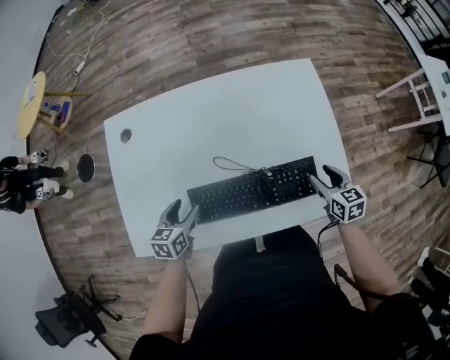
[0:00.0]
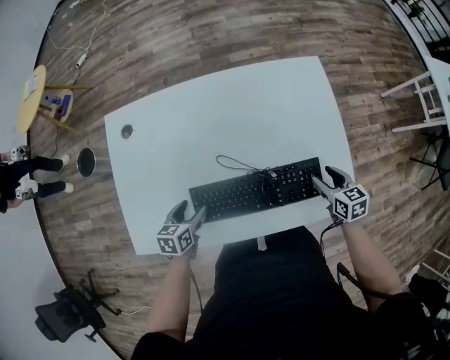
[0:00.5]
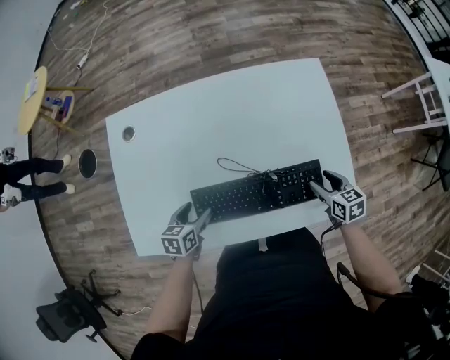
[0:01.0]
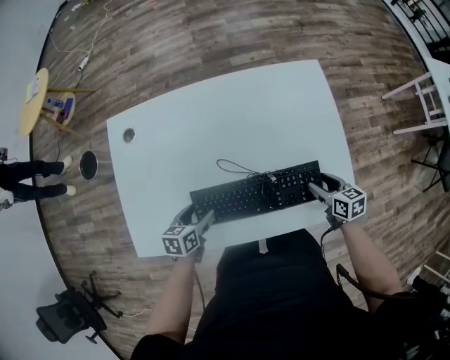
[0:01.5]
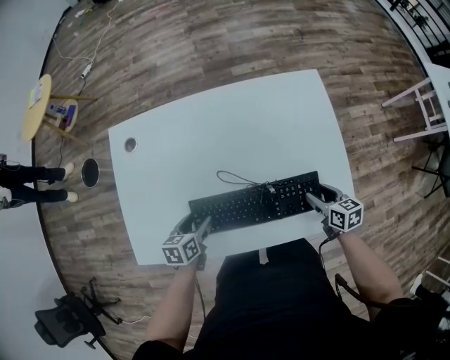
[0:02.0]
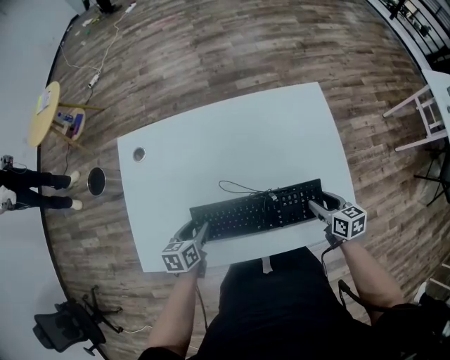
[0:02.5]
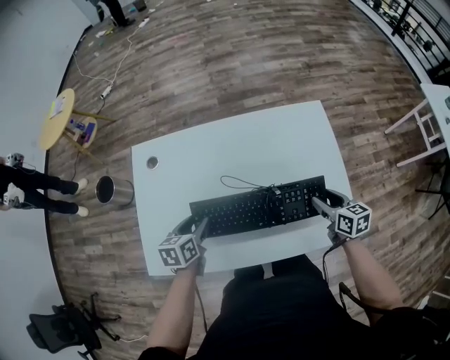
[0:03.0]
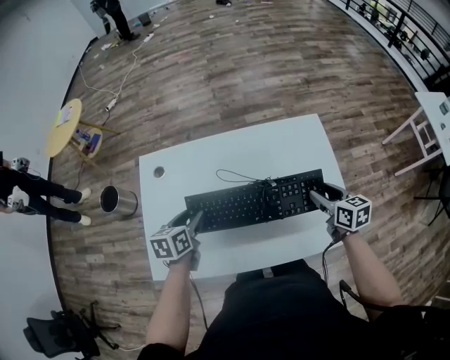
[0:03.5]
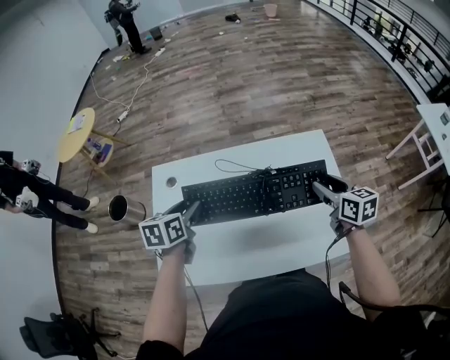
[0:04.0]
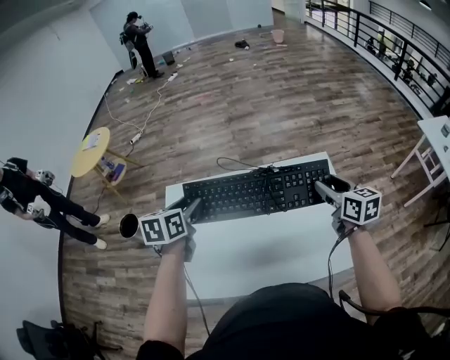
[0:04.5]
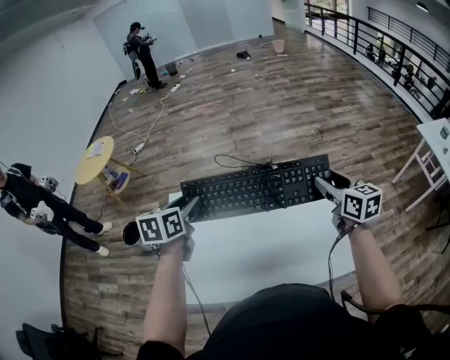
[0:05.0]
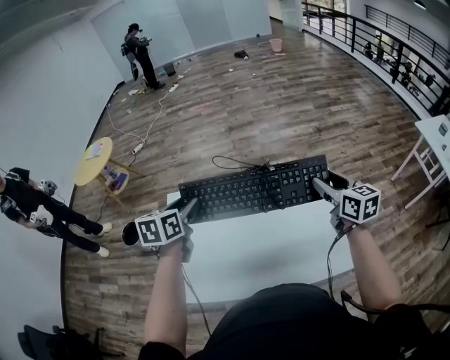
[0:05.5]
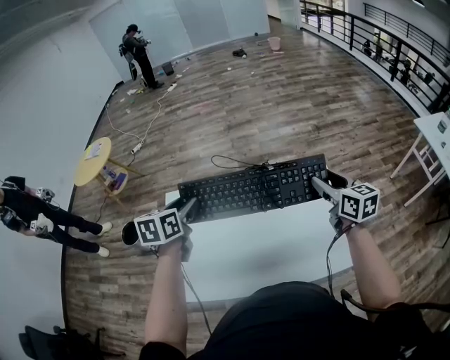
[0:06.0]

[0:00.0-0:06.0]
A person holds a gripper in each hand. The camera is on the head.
0:00.0 to 0:02.0: The grippers move only a little.
0:02.0 to 0:04.0: The grippers both shift upward and forward by approximately 25 cm.
0:04.0 to 0:06.0: The two grippers go about 10 cm upward.

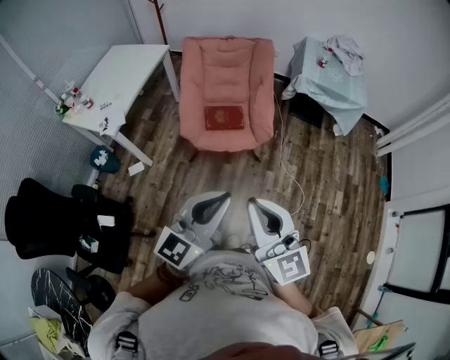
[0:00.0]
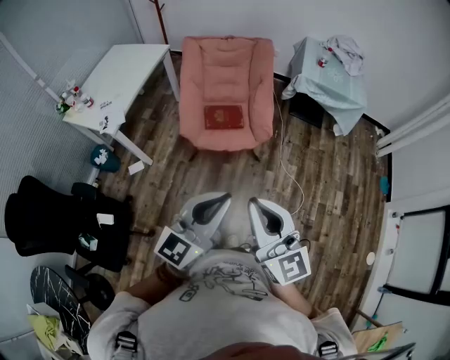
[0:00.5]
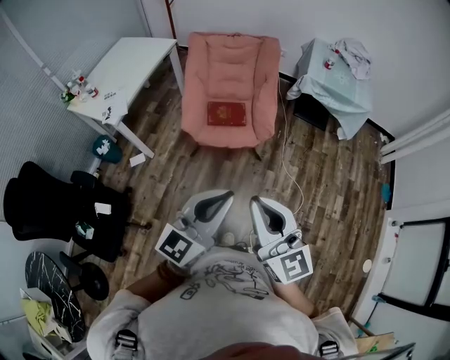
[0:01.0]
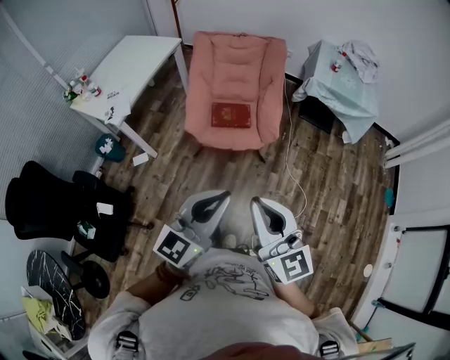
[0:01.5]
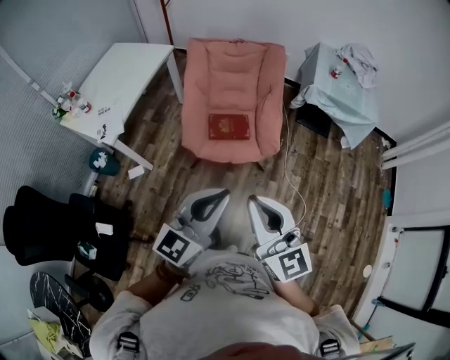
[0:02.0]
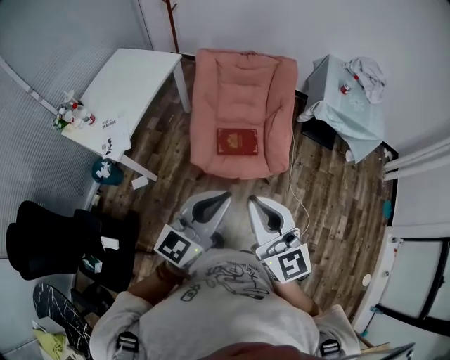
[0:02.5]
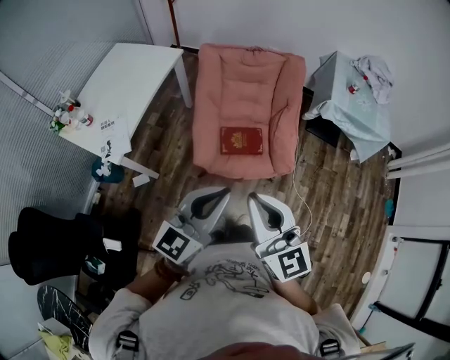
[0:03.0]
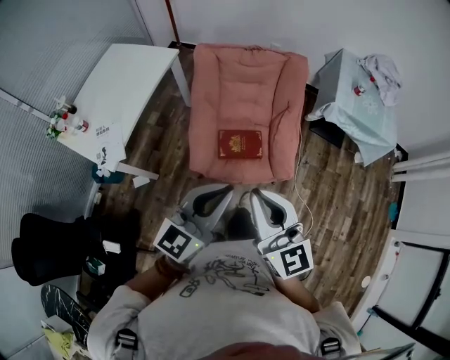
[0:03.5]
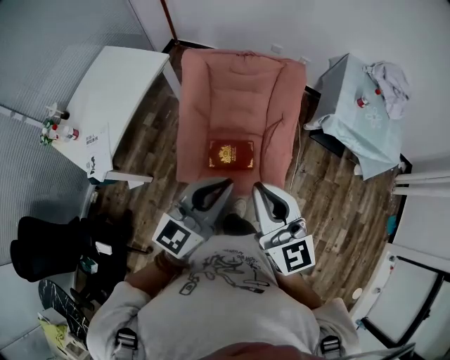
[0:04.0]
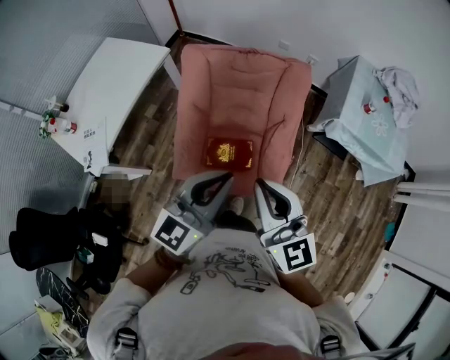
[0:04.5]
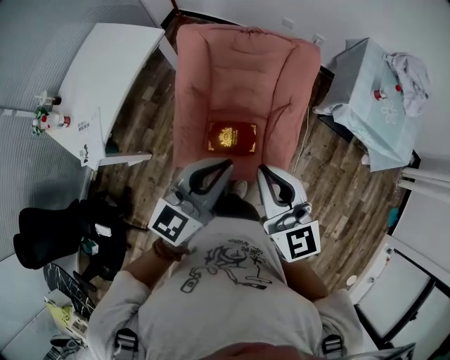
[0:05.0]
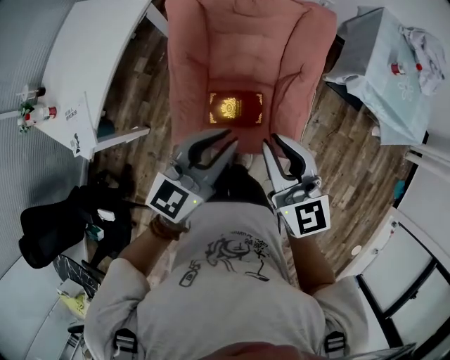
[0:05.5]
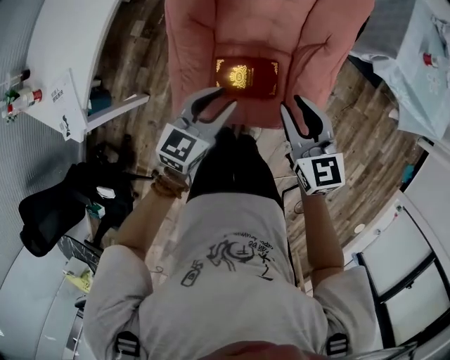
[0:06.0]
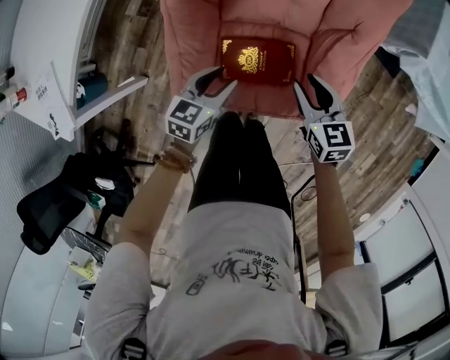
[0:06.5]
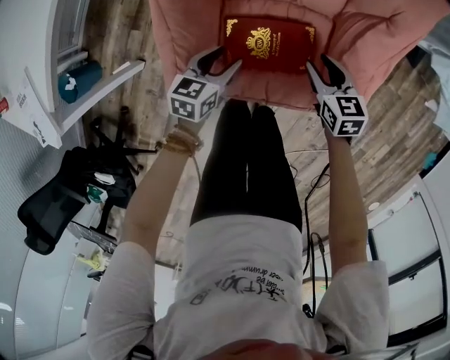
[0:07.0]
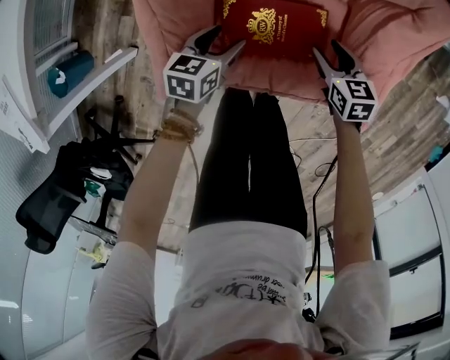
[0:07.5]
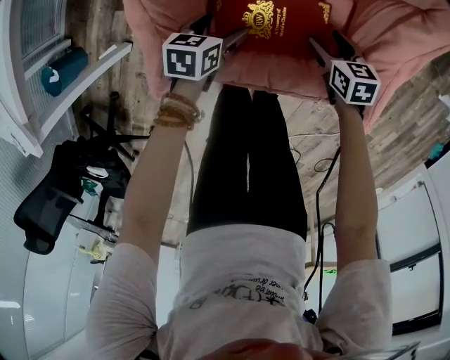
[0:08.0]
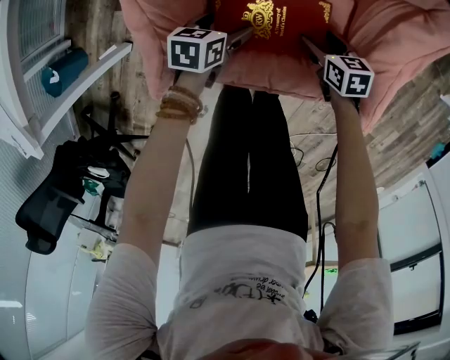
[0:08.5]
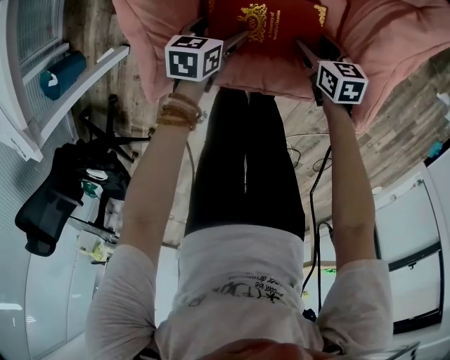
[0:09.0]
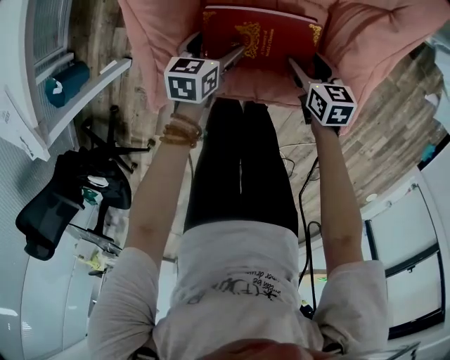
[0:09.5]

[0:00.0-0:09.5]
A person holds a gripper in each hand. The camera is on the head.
0:00.0 to 0:02.0: Both grippers travel together forward, roughly 15 cm.
0:02.0 to 0:04.0: Both grippers are carried forward, approximately 40 cm.
0:04.0 to 0:05.5: The grippers both shift forward and downward by roughly 20 cm.
0:05.5 to 0:07.5: Both grippers move downward, some 60 cm. The right gripper tips its fingers downward by approximately 40 degrees, and opens up. Meanwhile the left gripper points its fingers about 30 degrees further downward, and opens up.
0:07.5 to 0:09.5: The left gripper travels downward and back again, roughly 5 cm each way, and opens its fingers; the right gripper goes downward and returns, roughly 10 cm each way.

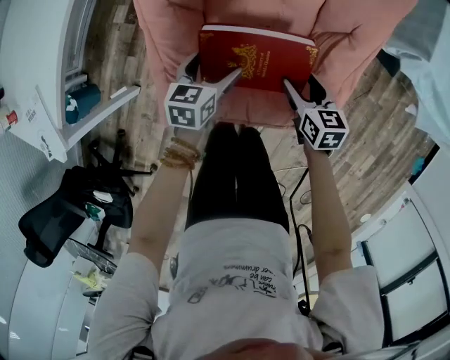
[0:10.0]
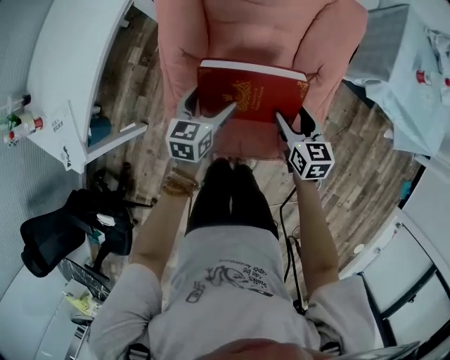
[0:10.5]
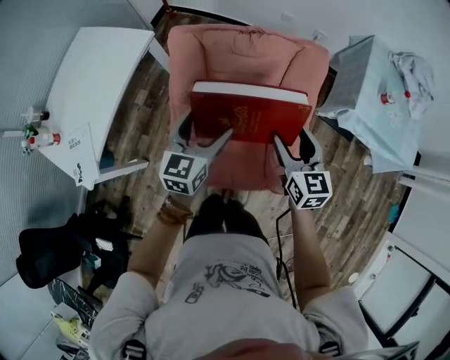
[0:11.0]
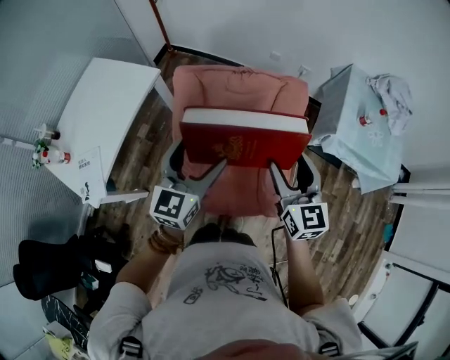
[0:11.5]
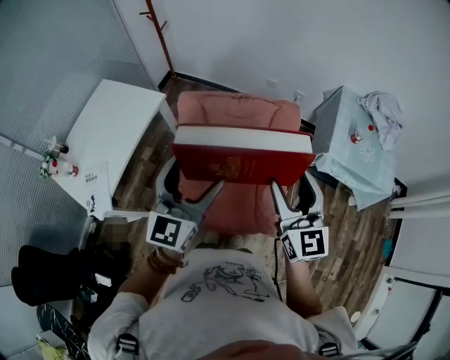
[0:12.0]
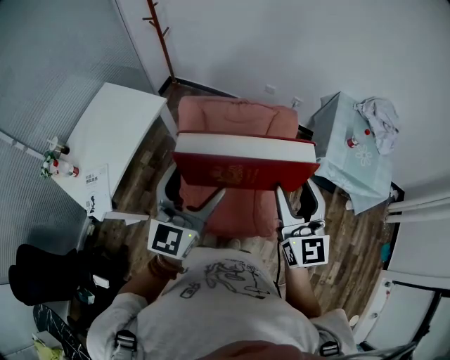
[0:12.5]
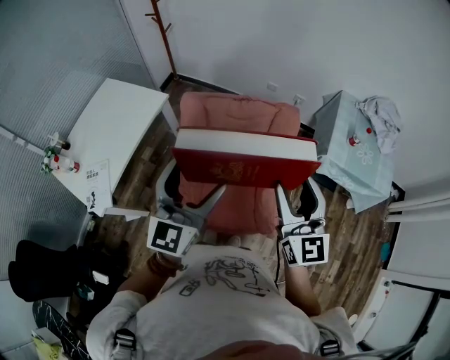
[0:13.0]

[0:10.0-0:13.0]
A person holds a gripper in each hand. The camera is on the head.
0:10.0 to 0:11.5: Both grippers move upward, approximately 60 cm. The right gripper tips its fingers upward by about 30 degrees; the left gripper tilts its fingers roughly 30 degrees upward.
0:11.5 to 0:13.0: Both grippers travel together upward and backward, roughly 15 cm.

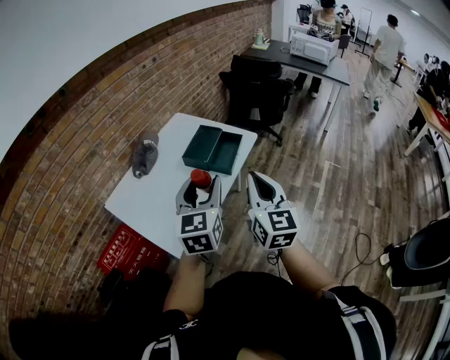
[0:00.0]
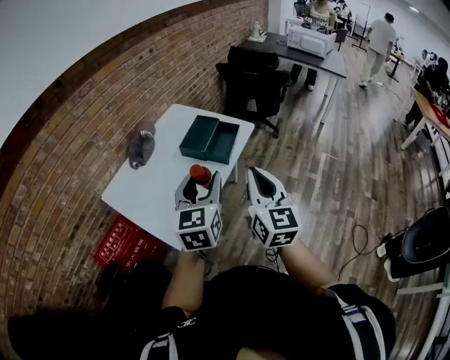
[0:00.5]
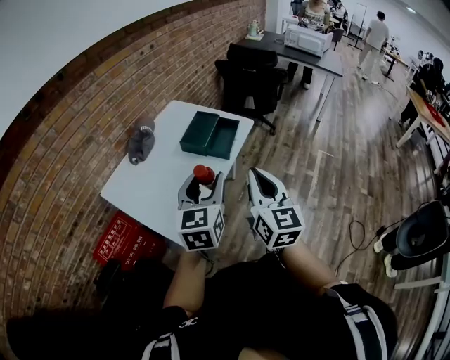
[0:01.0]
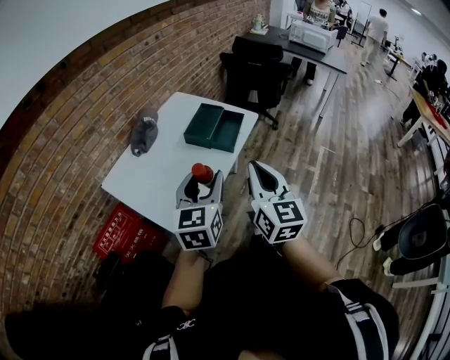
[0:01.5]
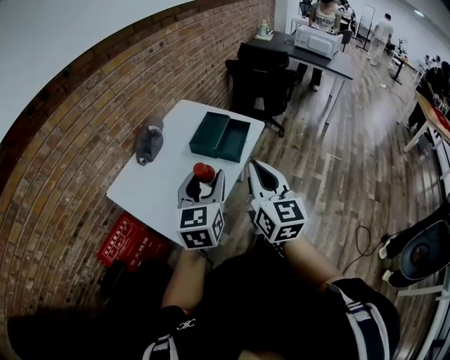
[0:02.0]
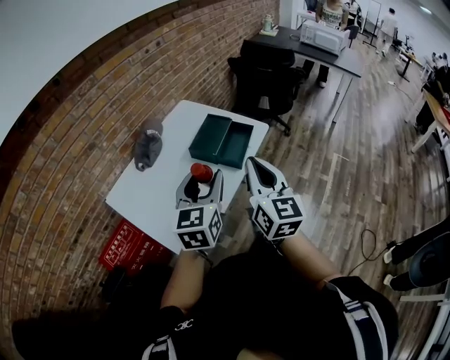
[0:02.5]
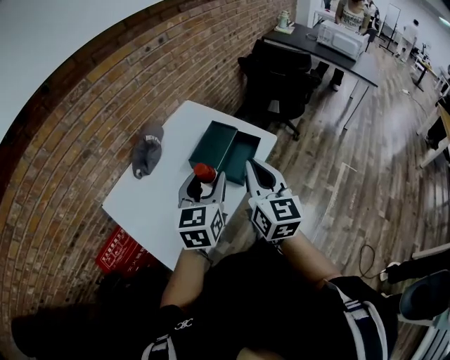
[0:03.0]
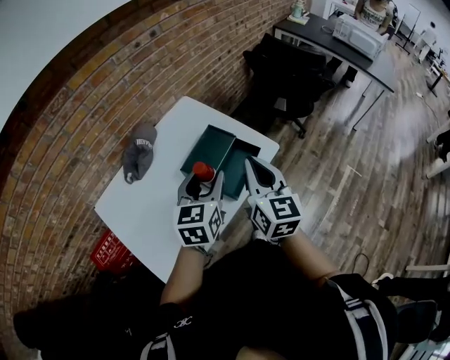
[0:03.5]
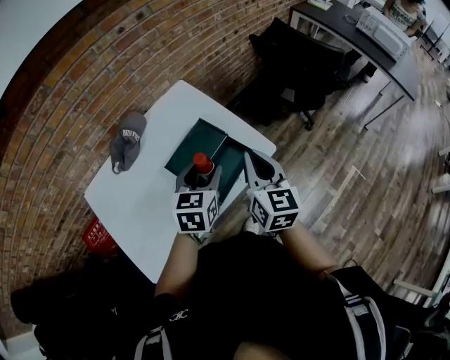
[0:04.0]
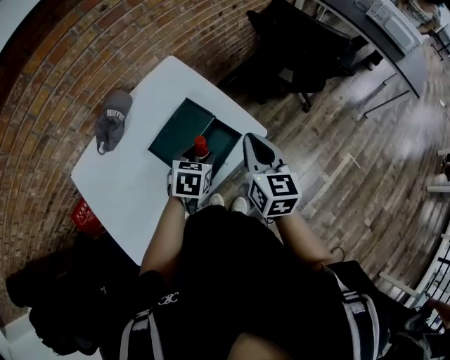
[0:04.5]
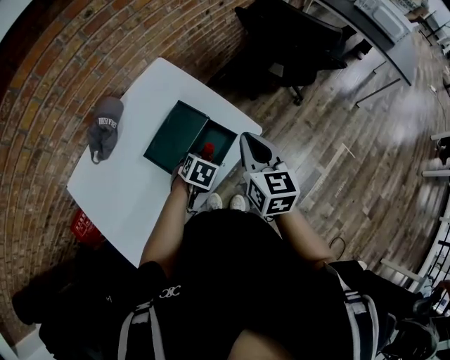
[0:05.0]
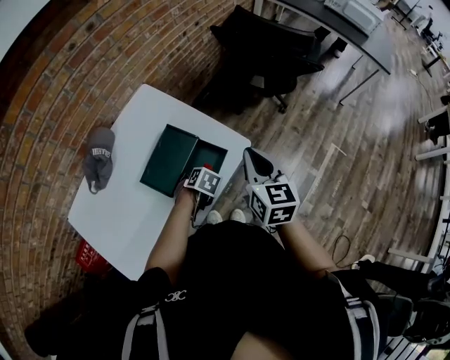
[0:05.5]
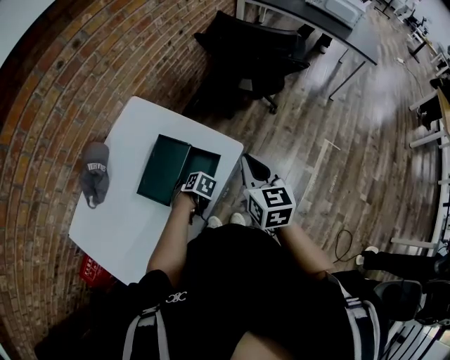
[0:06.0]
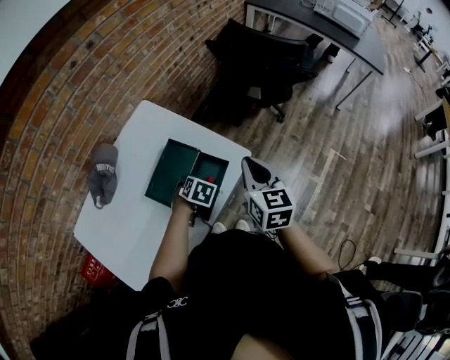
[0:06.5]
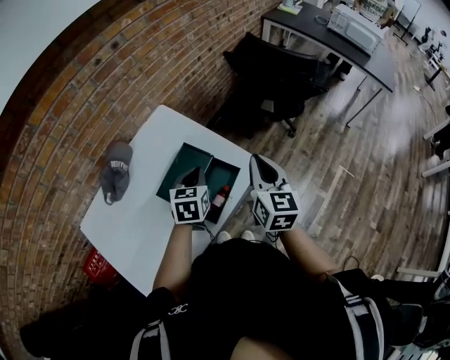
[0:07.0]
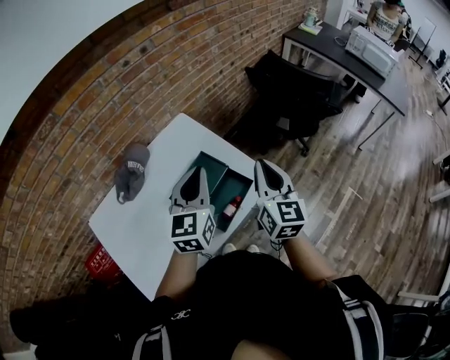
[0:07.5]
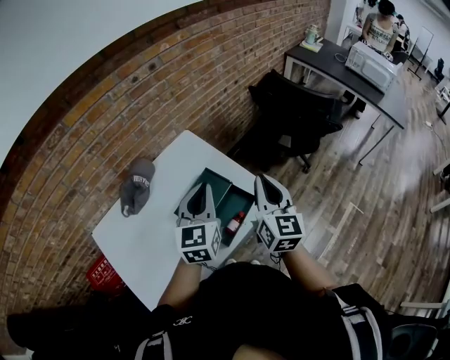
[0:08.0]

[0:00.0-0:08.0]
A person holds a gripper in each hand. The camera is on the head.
0:00.0 to 0:02.0: The right gripper is displaced to the left by roughly 5 cm.
0:02.0 to 0:04.0: The grippers both shift forward by about 35 cm. The right gripper swivels approximately 20 degrees. Meanwhile the left gripper turns by some 20 degrees.
0:04.0 to 0:06.0: The right gripper moves approximately 10 cm. Meanwhile the left gripper goes roughly 25 cm downward, and points its fingers approximately 60 degrees further downward.
0:06.0 to 0:08.0: The right gripper heads upward, covering roughly 10 cm, and changes its angle by roughly 20 degrees; the left gripper travels upward by approximately 35 cm, points its fingers some 80 degrees further upward, and closes.
